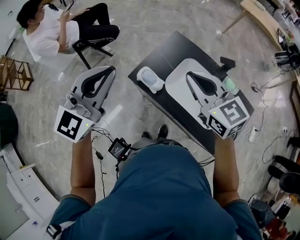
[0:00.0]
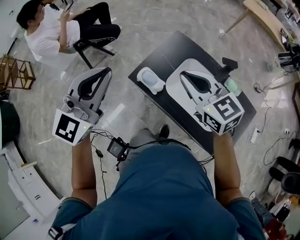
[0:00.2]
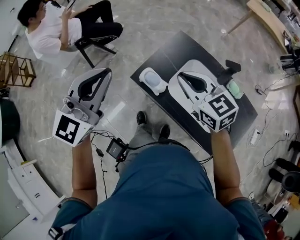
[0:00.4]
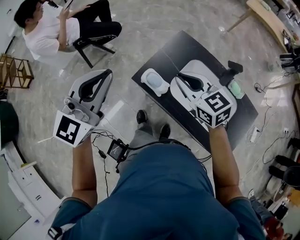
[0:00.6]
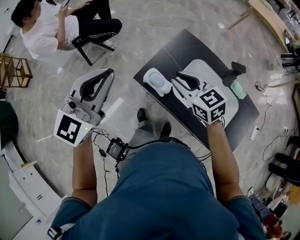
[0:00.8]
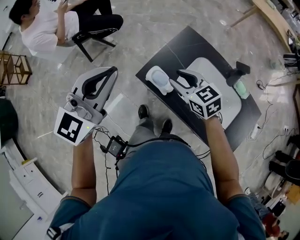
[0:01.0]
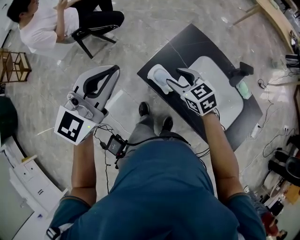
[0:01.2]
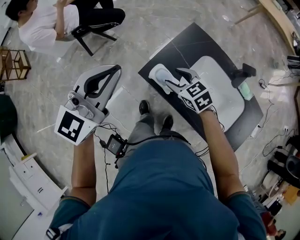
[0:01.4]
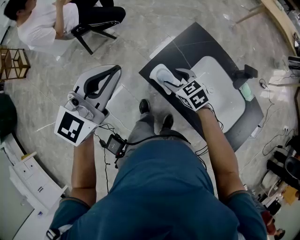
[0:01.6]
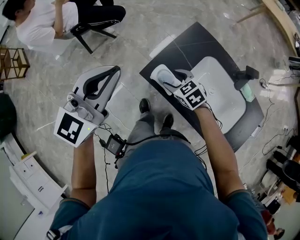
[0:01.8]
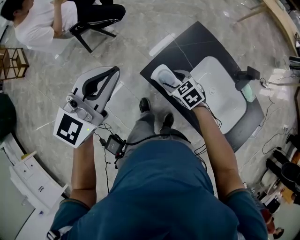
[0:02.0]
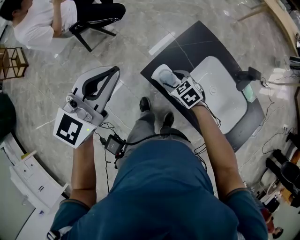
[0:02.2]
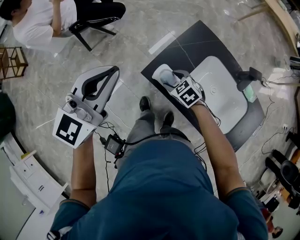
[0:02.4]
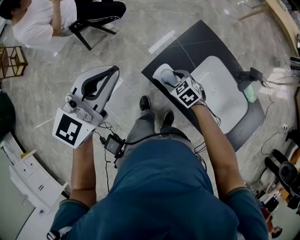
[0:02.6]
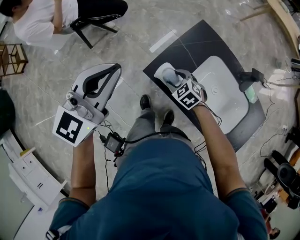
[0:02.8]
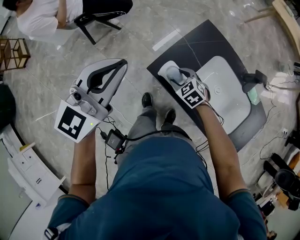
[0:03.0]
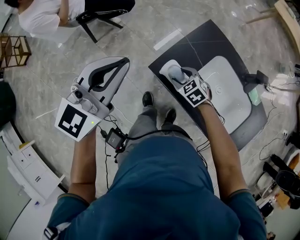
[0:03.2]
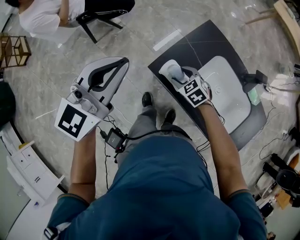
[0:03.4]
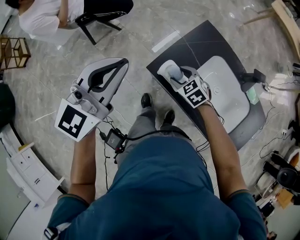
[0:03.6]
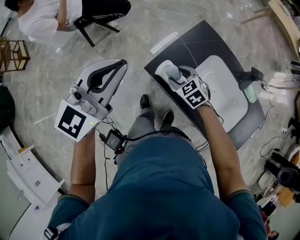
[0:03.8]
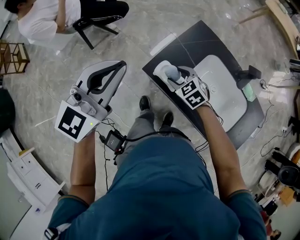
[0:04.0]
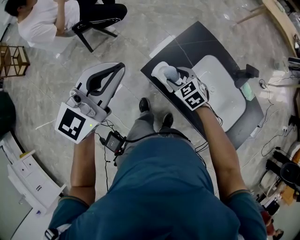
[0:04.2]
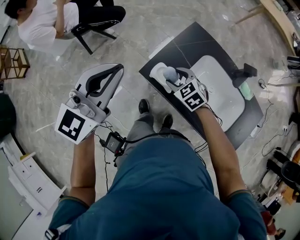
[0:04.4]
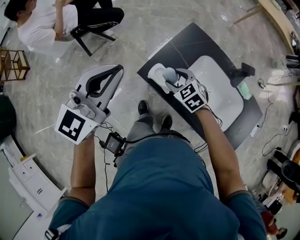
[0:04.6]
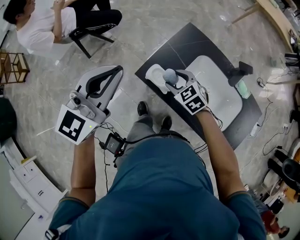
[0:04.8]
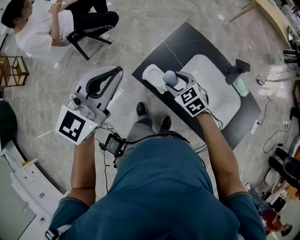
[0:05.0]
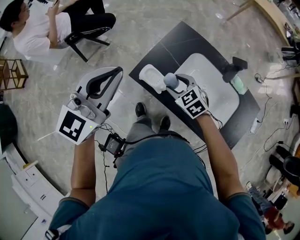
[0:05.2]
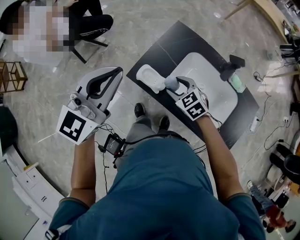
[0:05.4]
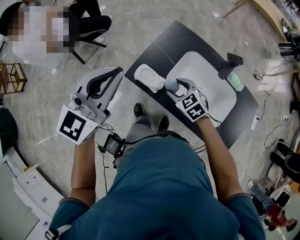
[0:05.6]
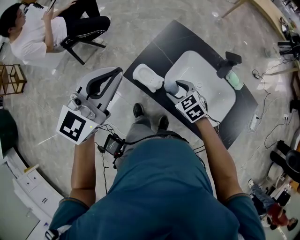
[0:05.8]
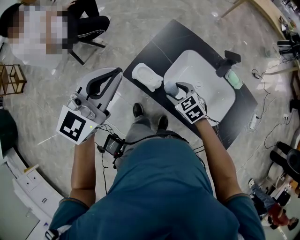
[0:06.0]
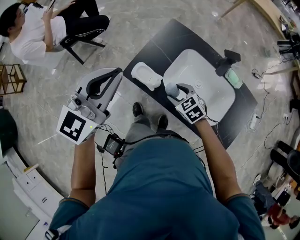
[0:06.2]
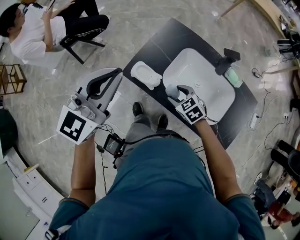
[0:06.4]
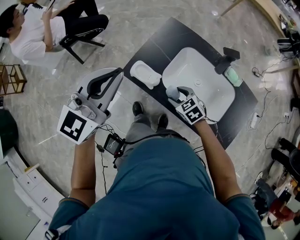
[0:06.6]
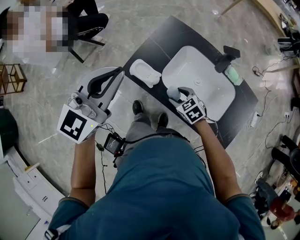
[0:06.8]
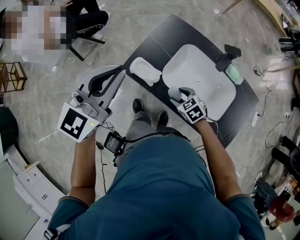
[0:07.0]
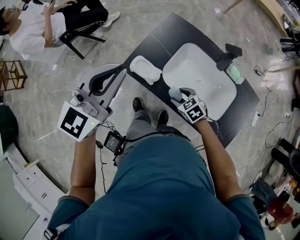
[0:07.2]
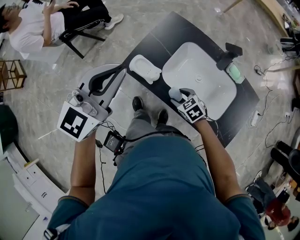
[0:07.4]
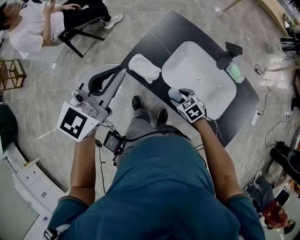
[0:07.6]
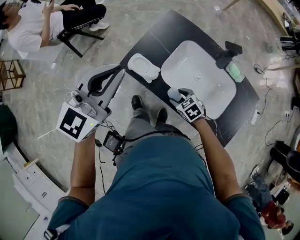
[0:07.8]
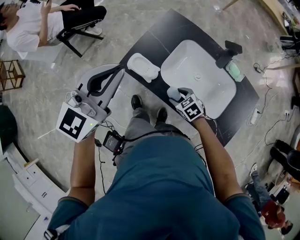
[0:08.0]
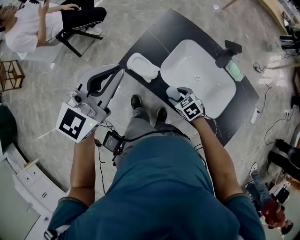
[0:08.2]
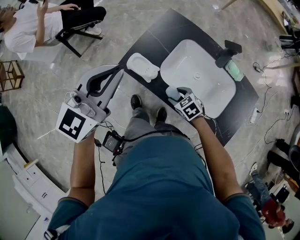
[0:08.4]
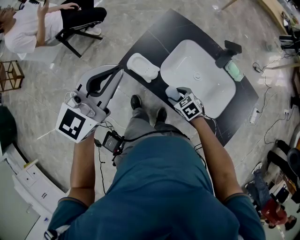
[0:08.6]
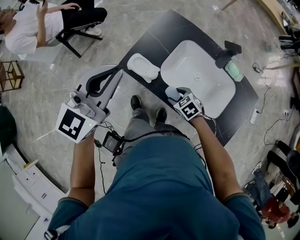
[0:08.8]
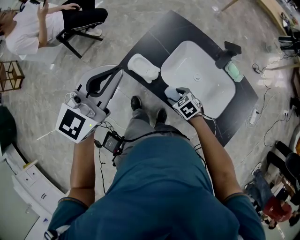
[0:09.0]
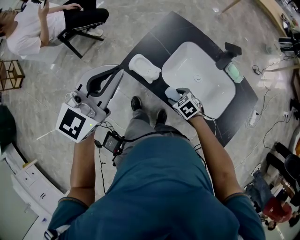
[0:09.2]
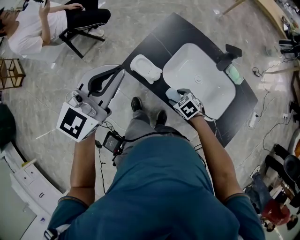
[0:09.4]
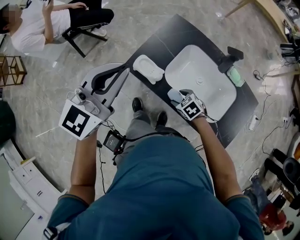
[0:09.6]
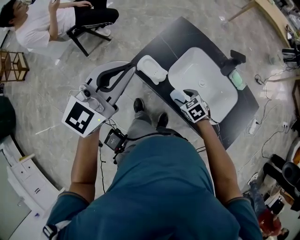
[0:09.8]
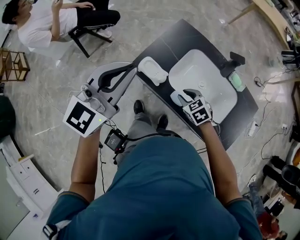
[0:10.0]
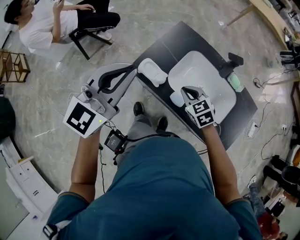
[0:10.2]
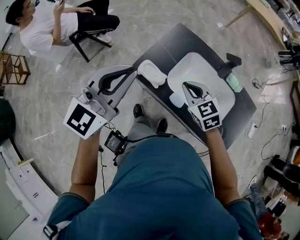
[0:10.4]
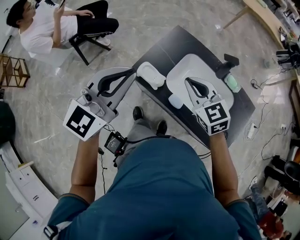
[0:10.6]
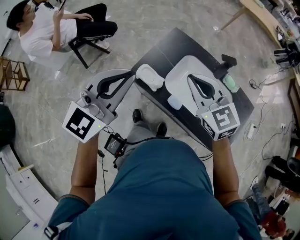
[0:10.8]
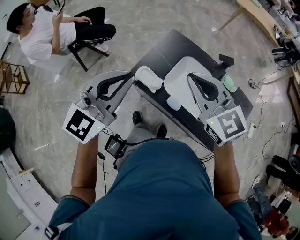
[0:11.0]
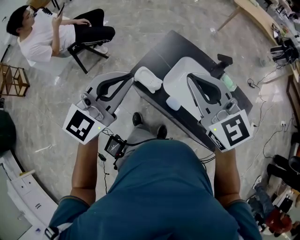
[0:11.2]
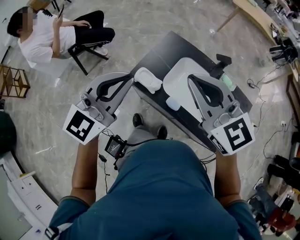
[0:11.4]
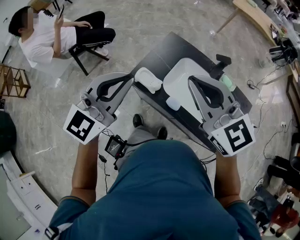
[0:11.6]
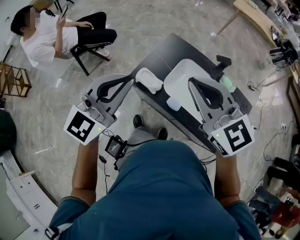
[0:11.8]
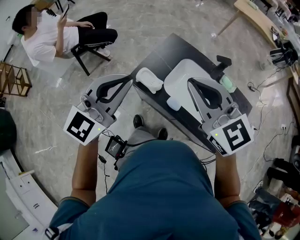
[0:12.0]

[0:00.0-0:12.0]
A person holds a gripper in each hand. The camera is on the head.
0:00.0 to 0:01.6: The left gripper shifts approximately 10 cm forward, downward and to the left. Meanwhile the right gripper goes approximately 30 cm downward and to the left, rotates about 30 degrees, and opens up.
0:01.6 to 0:03.0: The right gripper goes about 10 cm downward.
0:03.0 to 0:04.4: The right gripper heads upward, covering roughly 5 cm.
0:04.4 to 0:06.0: The right gripper shifts roughly 10 cm to the right and backward. The left gripper moves to the right, roughly 10 cm.
0:06.0 to 0:07.6: The right gripper moves downward and backward, roughly 10 cm.
0:07.6 to 0:09.0: The grippers stay close to where they were, moving slightly.
0:09.0 to 0:10.4: The right gripper travels upward by roughly 20 cm, rotates approximately 30 degrees, and closes.
0:10.4 to 0:12.0: The right gripper goes approximately 25 cm upward, and rotates roughly 30 degrees. The left gripper moves approximately 5 cm.

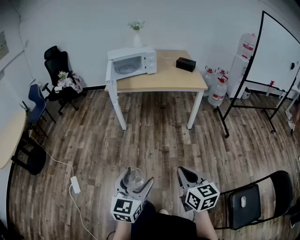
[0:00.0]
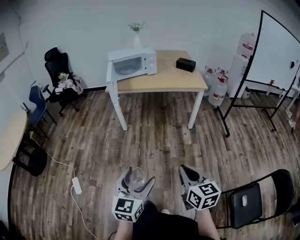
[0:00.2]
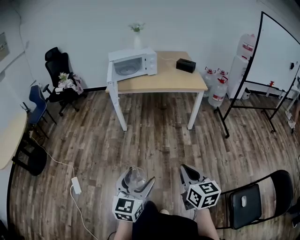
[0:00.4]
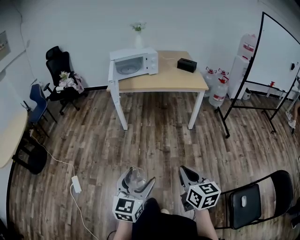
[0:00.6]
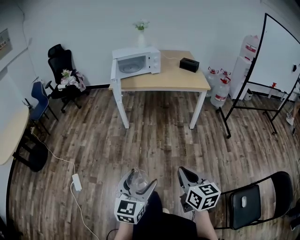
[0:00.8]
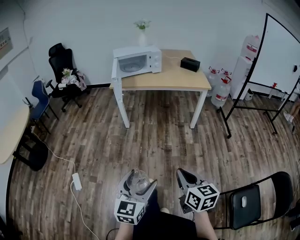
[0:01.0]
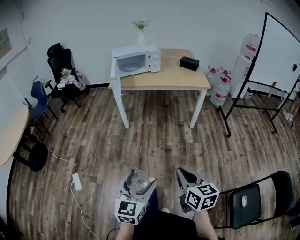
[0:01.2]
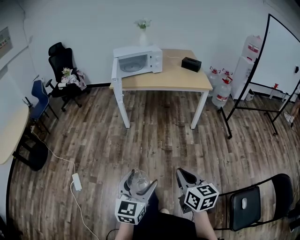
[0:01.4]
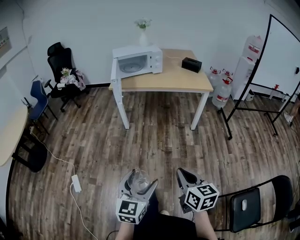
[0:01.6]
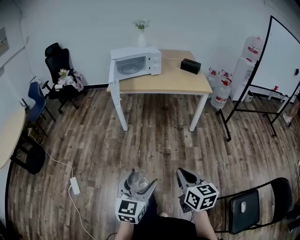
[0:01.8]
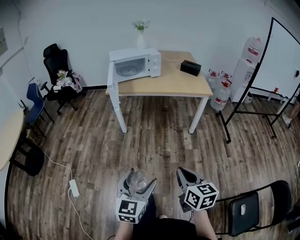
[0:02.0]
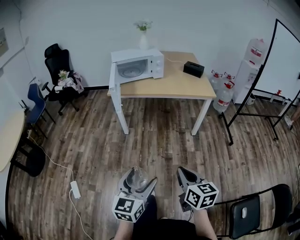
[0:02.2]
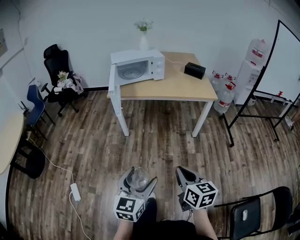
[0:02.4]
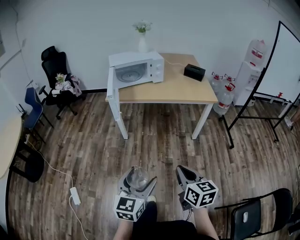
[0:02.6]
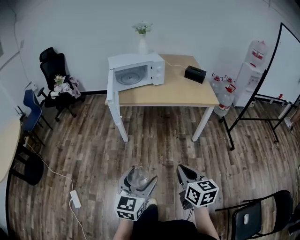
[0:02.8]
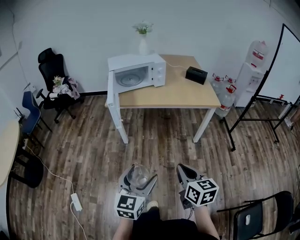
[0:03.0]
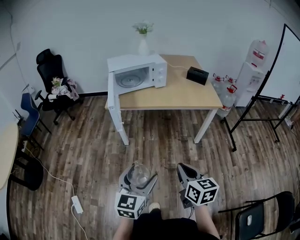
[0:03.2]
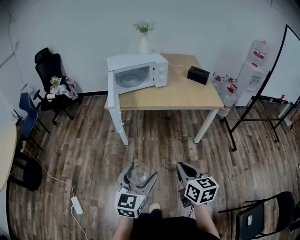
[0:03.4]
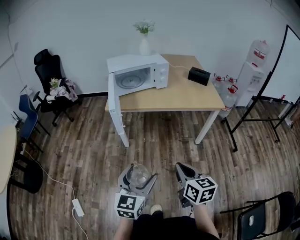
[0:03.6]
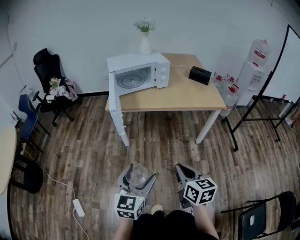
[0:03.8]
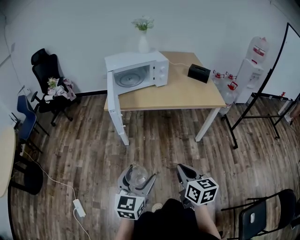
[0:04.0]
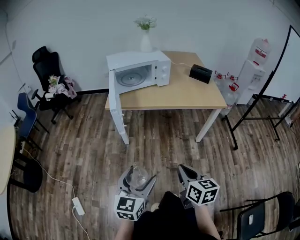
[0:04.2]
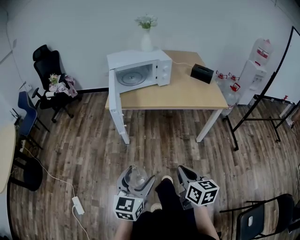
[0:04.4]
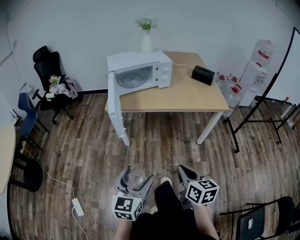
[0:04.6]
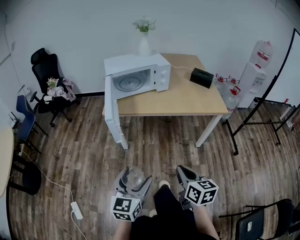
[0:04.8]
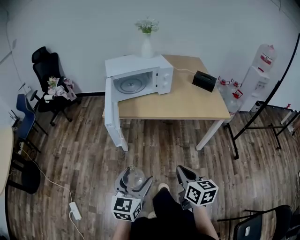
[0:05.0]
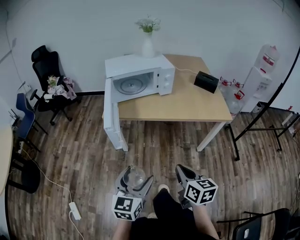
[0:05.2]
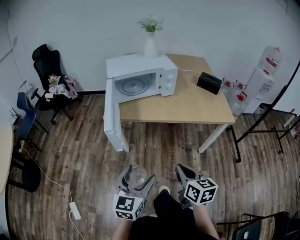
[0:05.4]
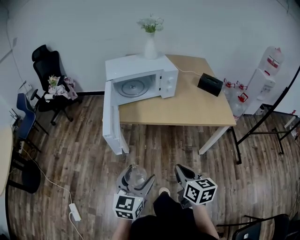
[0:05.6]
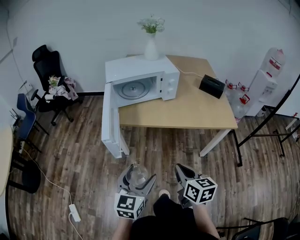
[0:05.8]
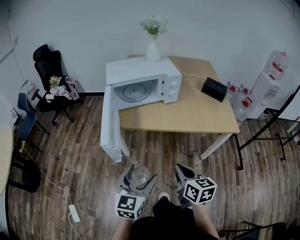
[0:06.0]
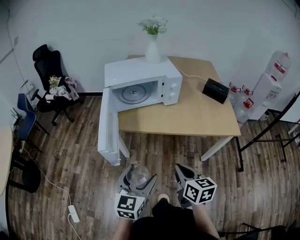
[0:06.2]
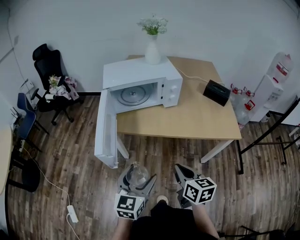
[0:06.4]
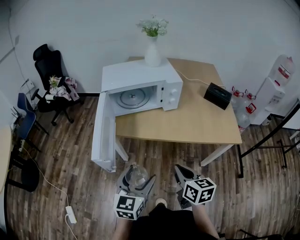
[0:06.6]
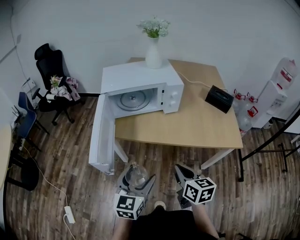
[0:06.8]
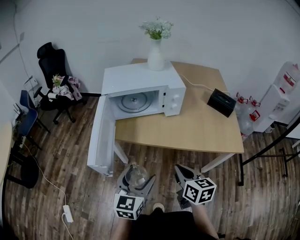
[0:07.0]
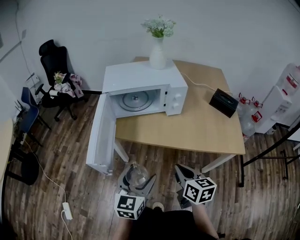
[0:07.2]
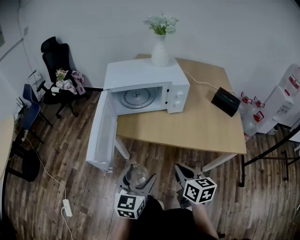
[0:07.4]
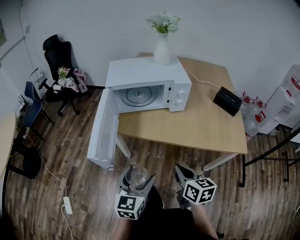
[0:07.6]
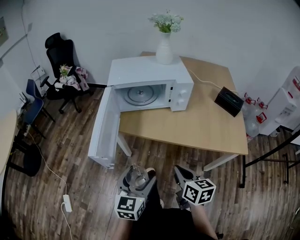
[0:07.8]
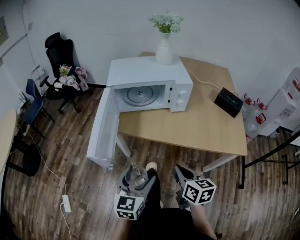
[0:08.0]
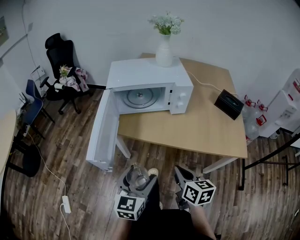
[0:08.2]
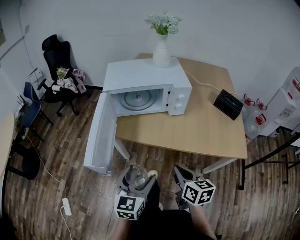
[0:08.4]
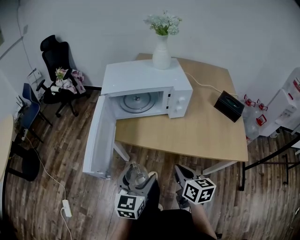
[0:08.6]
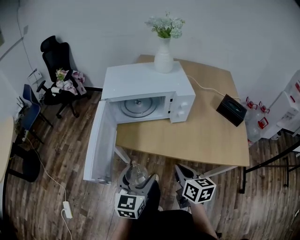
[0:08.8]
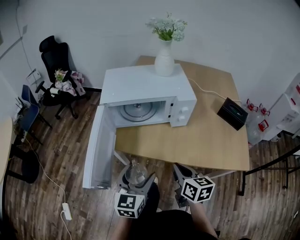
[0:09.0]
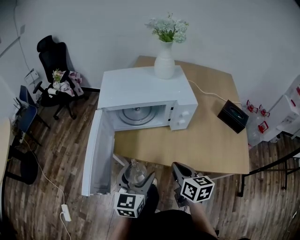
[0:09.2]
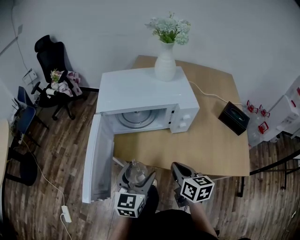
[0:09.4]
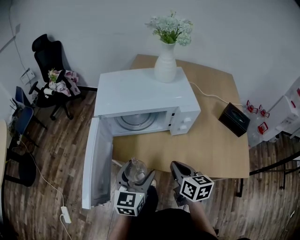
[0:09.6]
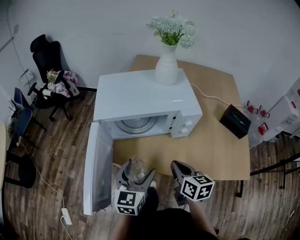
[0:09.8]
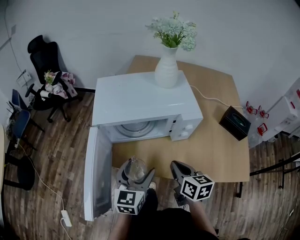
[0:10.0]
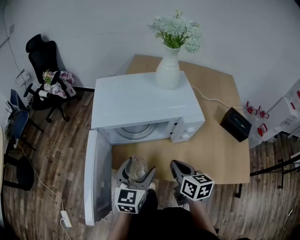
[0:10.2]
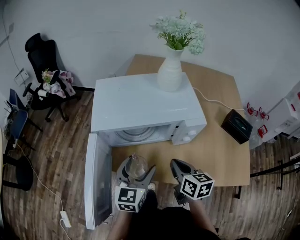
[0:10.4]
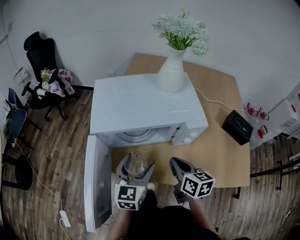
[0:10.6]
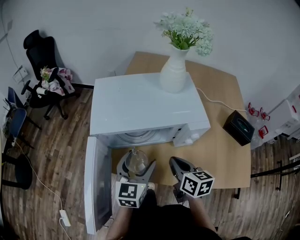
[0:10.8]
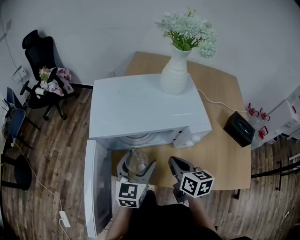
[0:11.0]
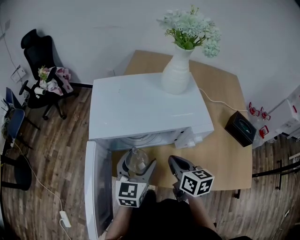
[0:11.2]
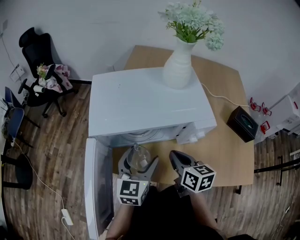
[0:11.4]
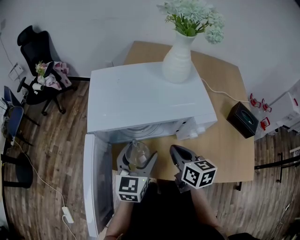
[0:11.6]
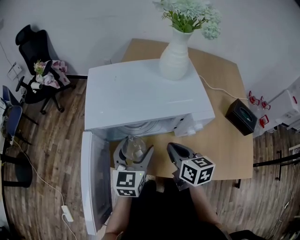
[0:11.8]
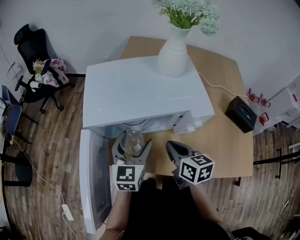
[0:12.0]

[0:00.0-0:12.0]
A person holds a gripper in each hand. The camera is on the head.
0:00.0 to 0:01.6: There are only small adjustments of the grippers.
0:01.6 to 0:03.0: Both grippers travel together forward, some 25 cm.
0:03.0 to 0:04.4: The left gripper heads forward and to the left, covering roughly 10 cm. Meanwhile the right gripper shifts about 5 cm forward.
0:04.4 to 0:06.0: The grippers both shift forward by some 20 cm.
0:06.0 to 0:07.6: The grippers both shift forward by roughly 10 cm.
0:07.6 to 0:09.0: The grippers both shift forward by about 10 cm.
0:09.0 to 0:10.4: The two grippers go some 15 cm forward.
0:10.4 to 0:12.0: The left gripper moves forward, some 10 cm, while the right gripper moves forward, about 5 cm.
